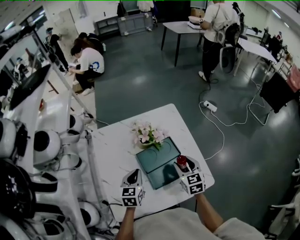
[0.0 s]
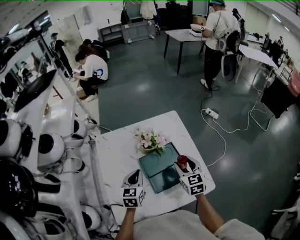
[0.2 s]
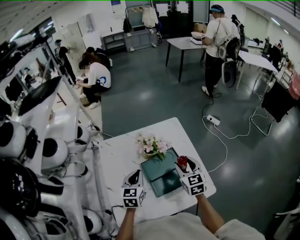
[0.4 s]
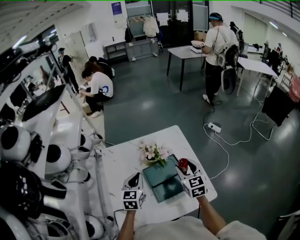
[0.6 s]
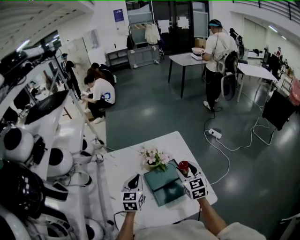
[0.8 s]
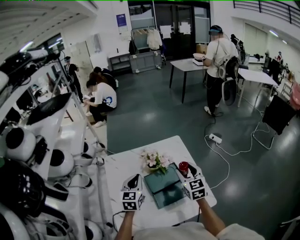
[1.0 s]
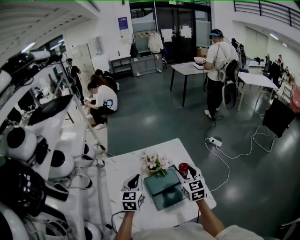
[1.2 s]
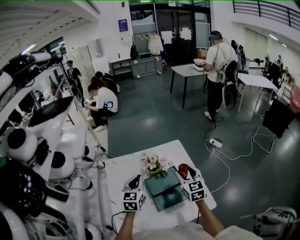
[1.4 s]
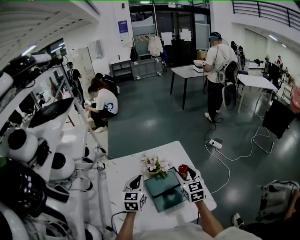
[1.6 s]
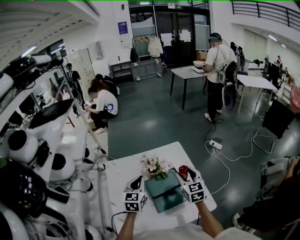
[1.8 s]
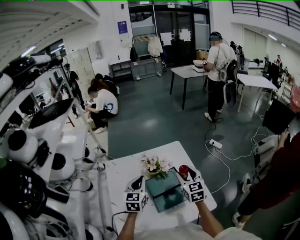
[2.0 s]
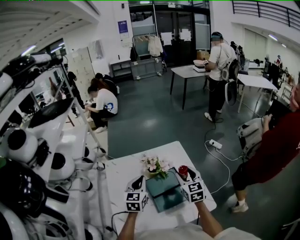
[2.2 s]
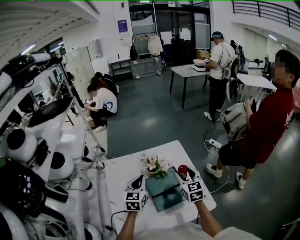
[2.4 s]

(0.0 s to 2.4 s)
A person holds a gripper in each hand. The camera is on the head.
0.0 s - 1.2 s: The two grippers go about 10 cm upward.
1.2 s - 2.4 s: The grippers make only small movements.

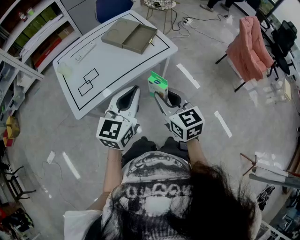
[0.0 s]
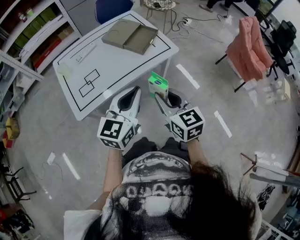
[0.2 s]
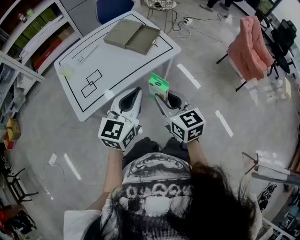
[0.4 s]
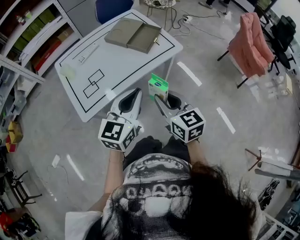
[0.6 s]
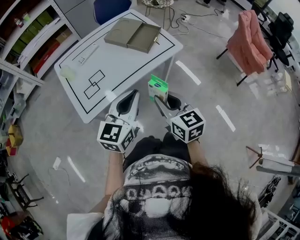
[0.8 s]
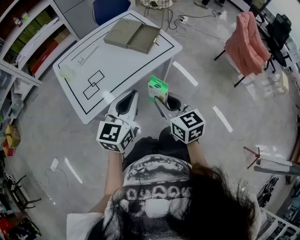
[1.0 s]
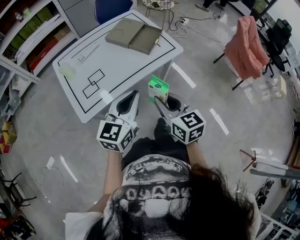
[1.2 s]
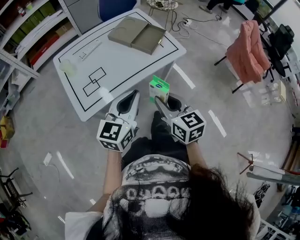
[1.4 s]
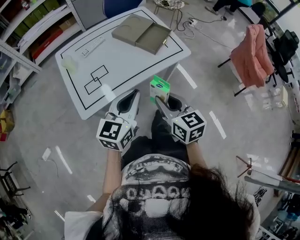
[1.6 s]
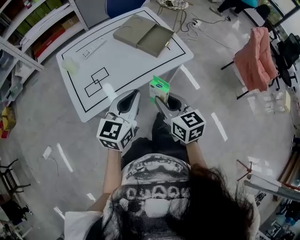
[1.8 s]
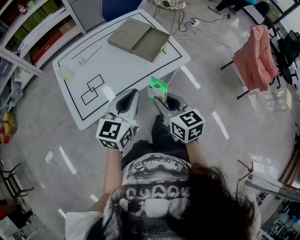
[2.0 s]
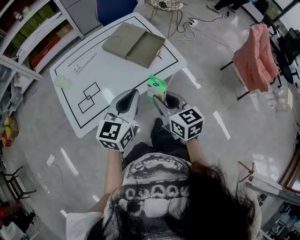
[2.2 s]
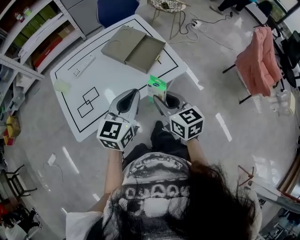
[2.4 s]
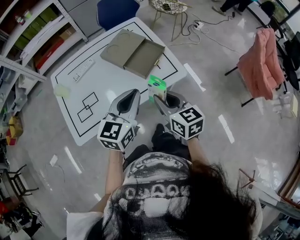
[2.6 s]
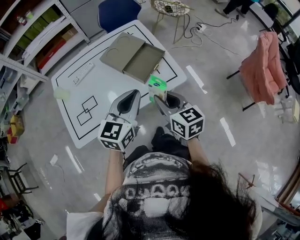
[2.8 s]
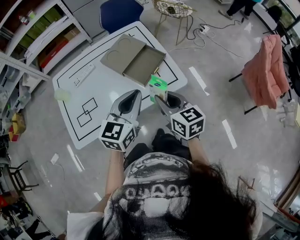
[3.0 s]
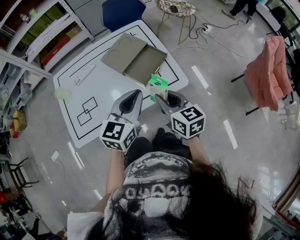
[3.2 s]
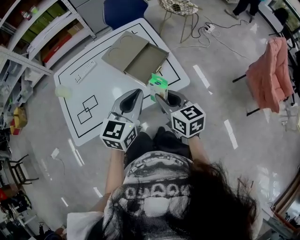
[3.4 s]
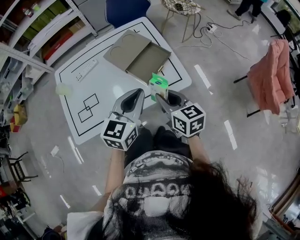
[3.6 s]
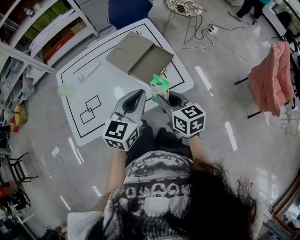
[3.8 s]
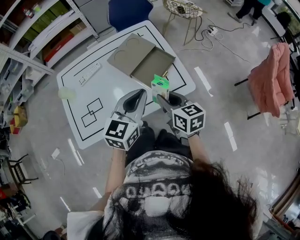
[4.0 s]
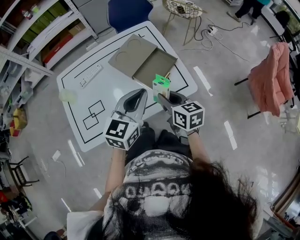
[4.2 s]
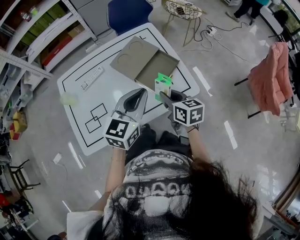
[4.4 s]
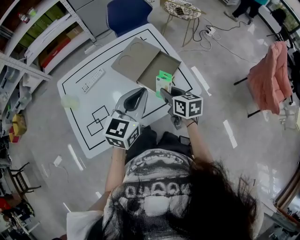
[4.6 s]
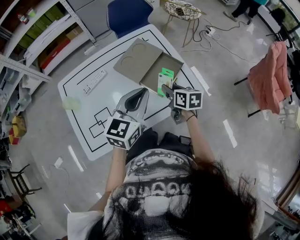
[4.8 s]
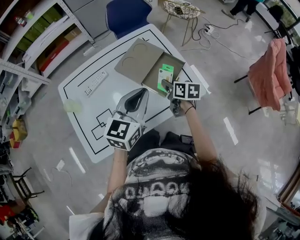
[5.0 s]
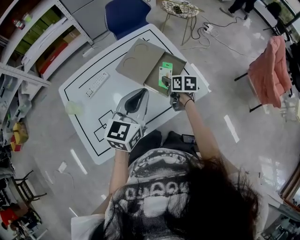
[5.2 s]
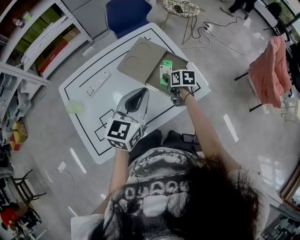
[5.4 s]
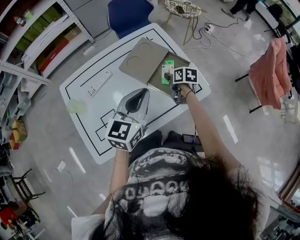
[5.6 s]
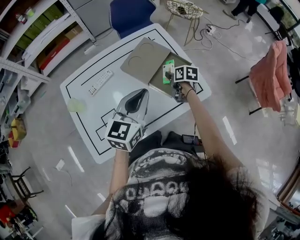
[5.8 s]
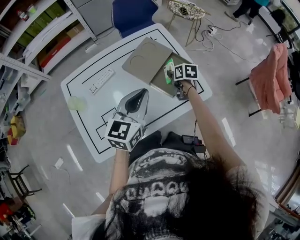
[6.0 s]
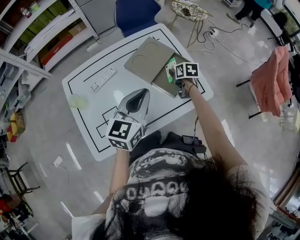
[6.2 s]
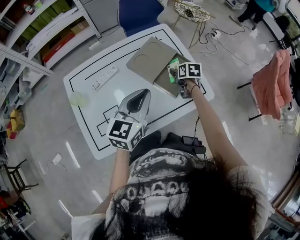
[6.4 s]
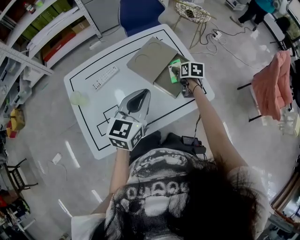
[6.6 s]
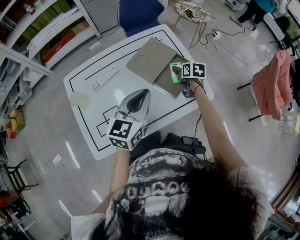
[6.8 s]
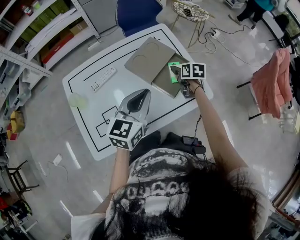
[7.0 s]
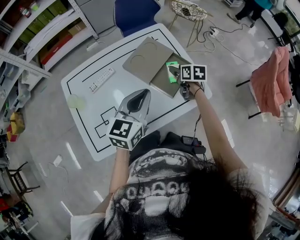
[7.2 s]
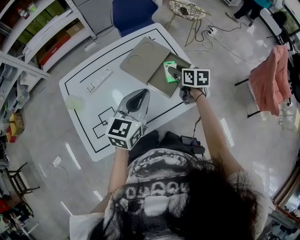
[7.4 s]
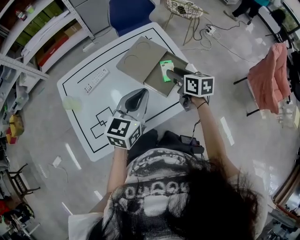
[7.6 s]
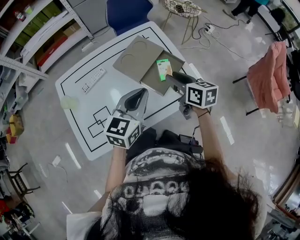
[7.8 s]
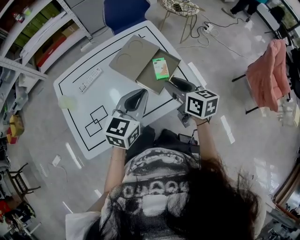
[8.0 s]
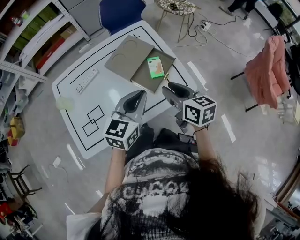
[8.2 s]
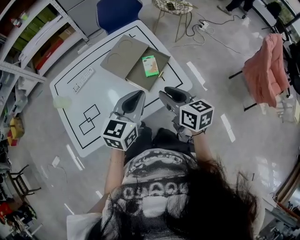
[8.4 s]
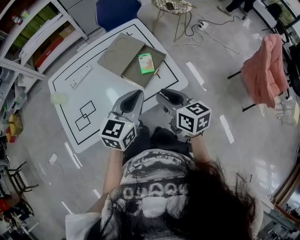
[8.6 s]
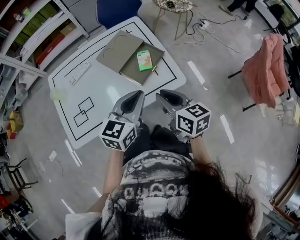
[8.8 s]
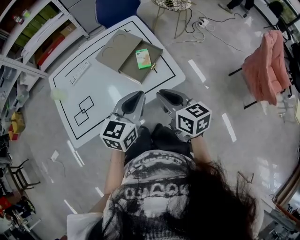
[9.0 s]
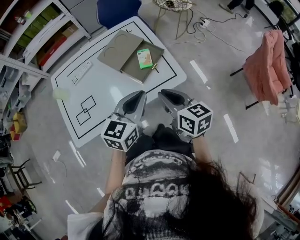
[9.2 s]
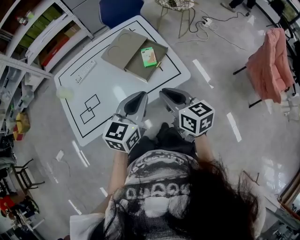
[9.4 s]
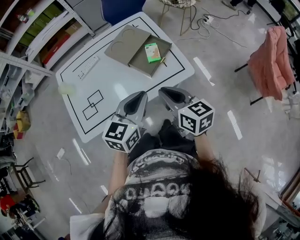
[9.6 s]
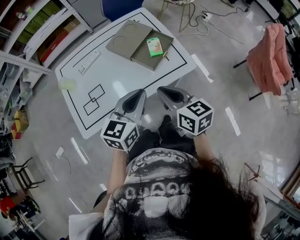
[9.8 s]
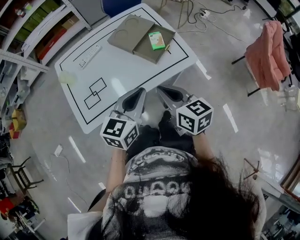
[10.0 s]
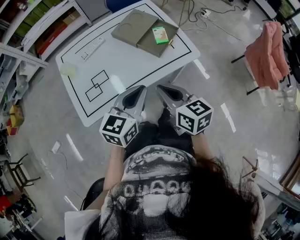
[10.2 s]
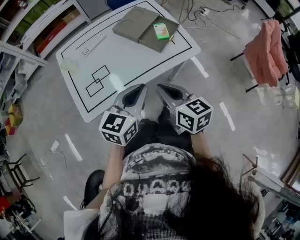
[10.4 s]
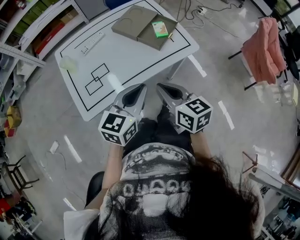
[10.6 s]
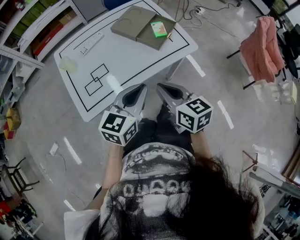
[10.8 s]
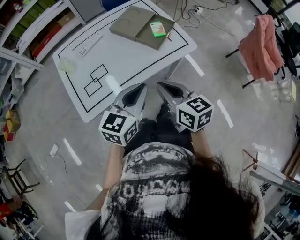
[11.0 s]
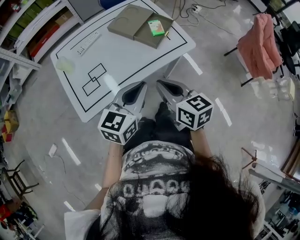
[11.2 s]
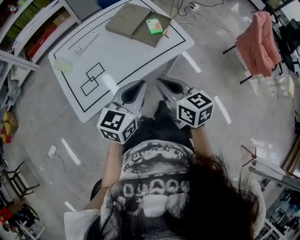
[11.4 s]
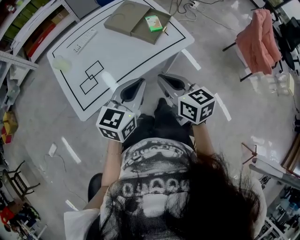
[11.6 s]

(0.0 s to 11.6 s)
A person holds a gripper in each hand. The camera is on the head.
0.0 s - 1.4 s: Both grippers travel together to the left, about 10 cm.
1.4 s - 2.8 s: Both grippers move forward and to the right, about 25 cm.
2.8 s - 4.4 s: The right gripper heads forward and downward, covering some 15 cm. Meanwhile the left gripper travels forward by approximately 10 cm.
4.4 s - 5.8 s: The left gripper moves to the left, about 10 cm; the right gripper heads forward and downward, covering roughly 20 cm, and swivels about 30 degrees.
5.8 s - 7.2 s: The right gripper ends up some 5 cm from where it was, and opens its fingers.
7.2 s - 8.8 s: The right gripper moves backward and upward, approximately 30 cm, turns by about 30 degrees, and closes; the left gripper goes some 20 cm to the right and backward.
8.8 s - 10.2 s: The left gripper moves backward and to the left, approximately 20 cm, while the right gripper travels to the left and backward by approximately 20 cm.
10.2 s - 11.6 s: The grippers move only a little.

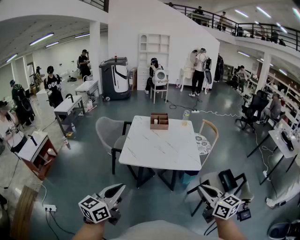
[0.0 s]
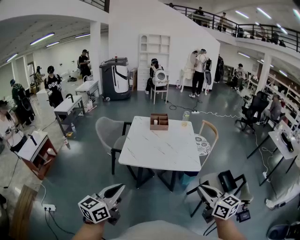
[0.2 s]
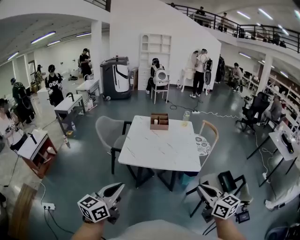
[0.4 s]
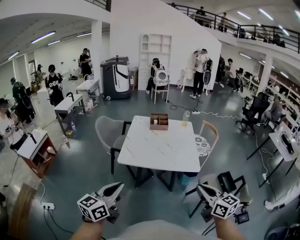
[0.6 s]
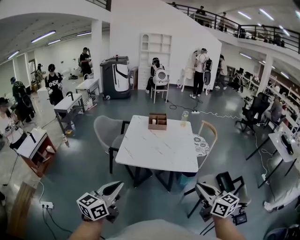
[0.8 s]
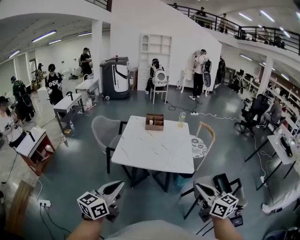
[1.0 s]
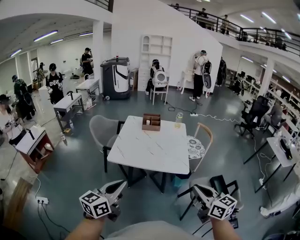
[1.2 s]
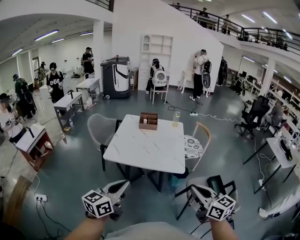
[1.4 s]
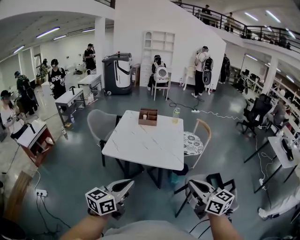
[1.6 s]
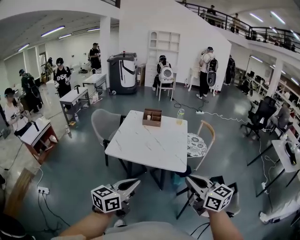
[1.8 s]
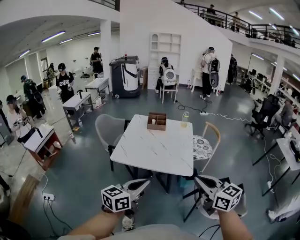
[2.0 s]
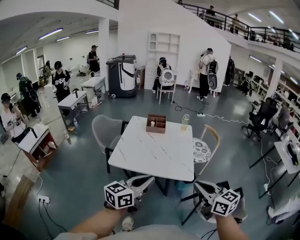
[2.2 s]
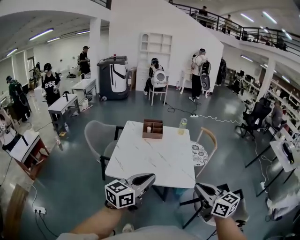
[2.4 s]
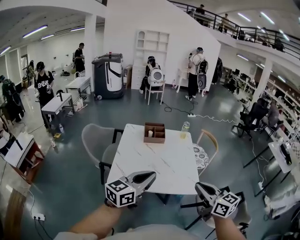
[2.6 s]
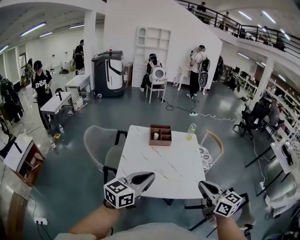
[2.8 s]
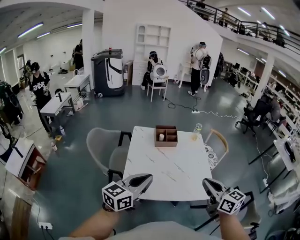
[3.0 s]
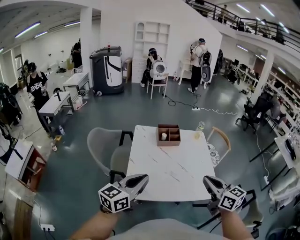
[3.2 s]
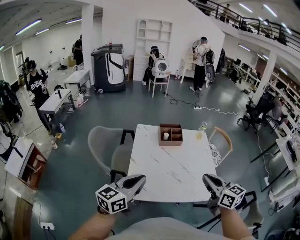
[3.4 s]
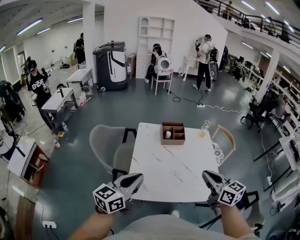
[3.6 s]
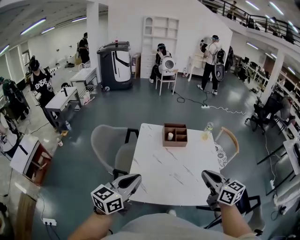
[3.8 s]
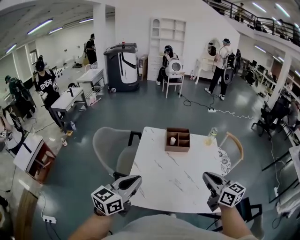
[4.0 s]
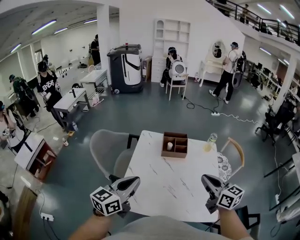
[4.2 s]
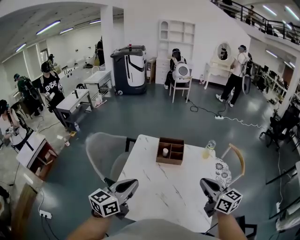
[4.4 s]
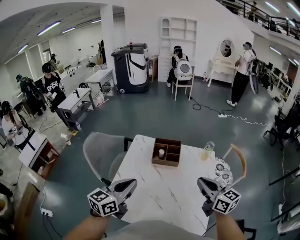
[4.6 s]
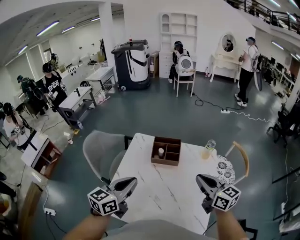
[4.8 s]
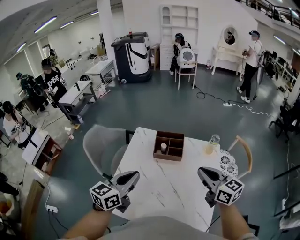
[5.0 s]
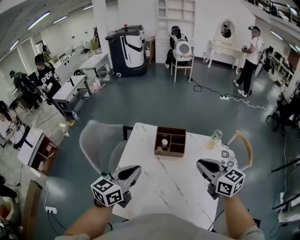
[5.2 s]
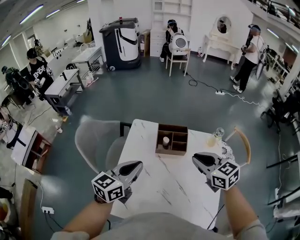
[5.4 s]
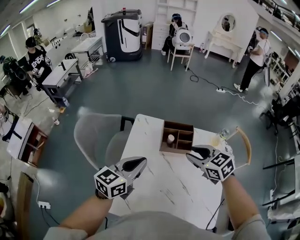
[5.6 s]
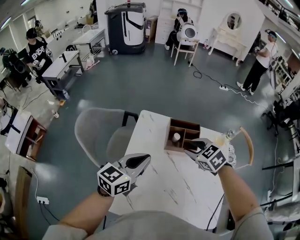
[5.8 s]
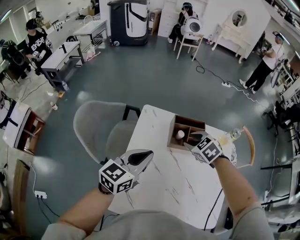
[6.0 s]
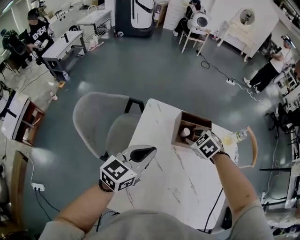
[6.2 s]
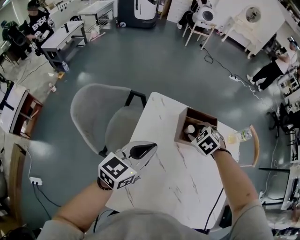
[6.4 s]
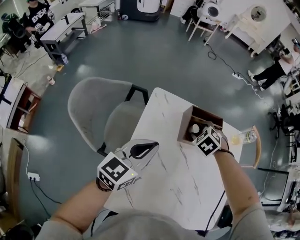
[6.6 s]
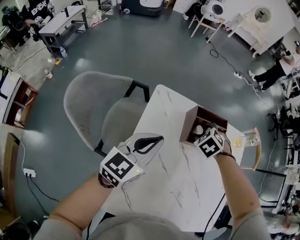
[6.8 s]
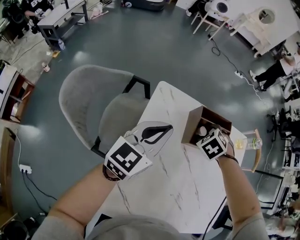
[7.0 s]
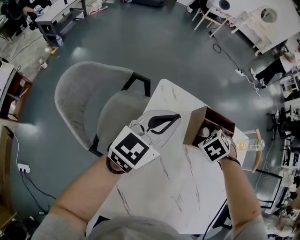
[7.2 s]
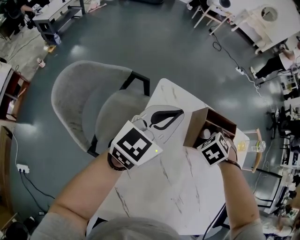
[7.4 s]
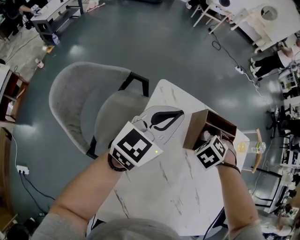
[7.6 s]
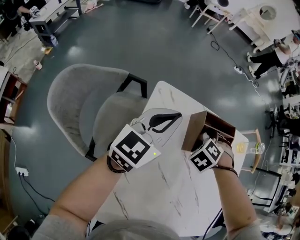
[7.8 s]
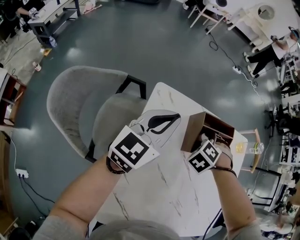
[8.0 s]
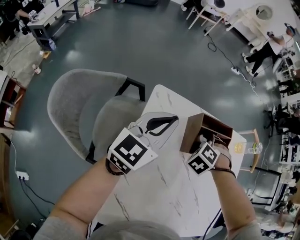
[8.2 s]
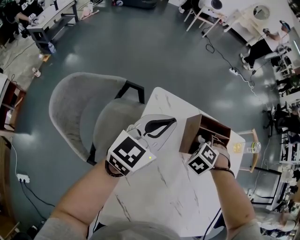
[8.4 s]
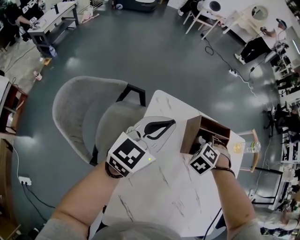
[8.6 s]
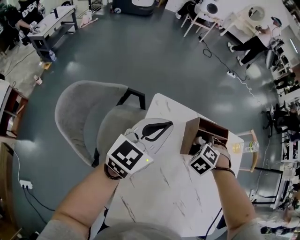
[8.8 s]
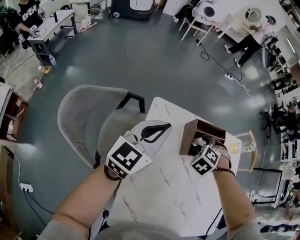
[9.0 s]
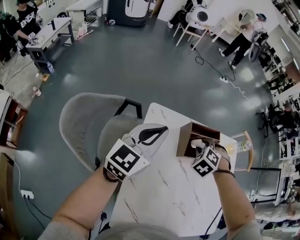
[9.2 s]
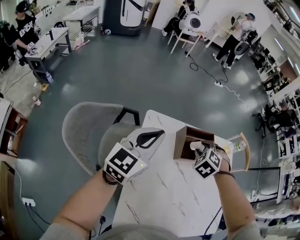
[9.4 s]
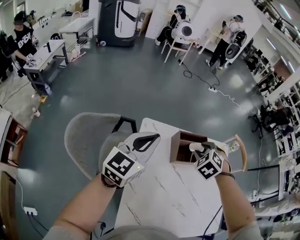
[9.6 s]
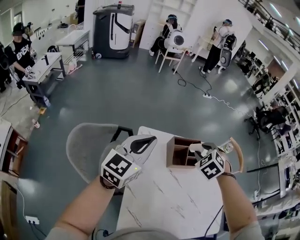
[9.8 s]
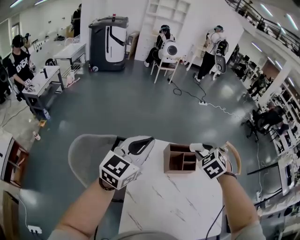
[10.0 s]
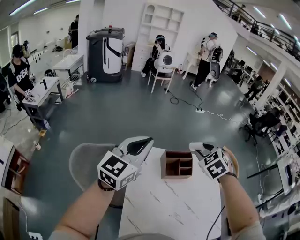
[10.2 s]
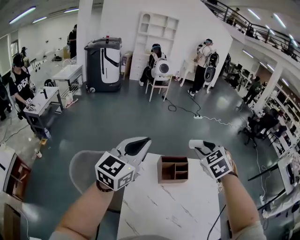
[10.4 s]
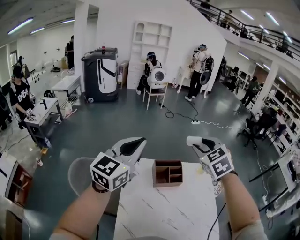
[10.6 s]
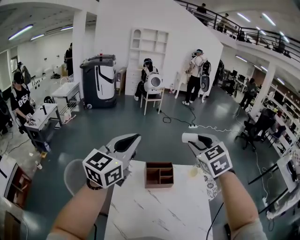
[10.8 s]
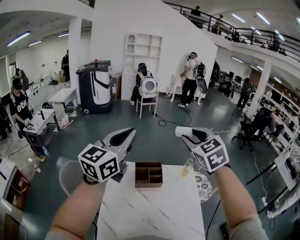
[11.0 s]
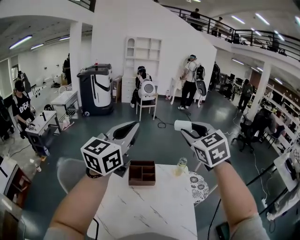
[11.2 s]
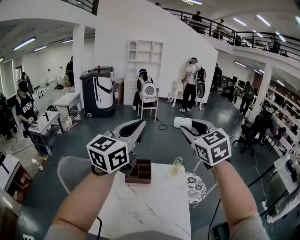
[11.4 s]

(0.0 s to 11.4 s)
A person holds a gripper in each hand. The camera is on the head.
0.0 s - 1.4 s: Both grippers move to the right, approximately 15 cm.
1.4 s - 2.8 s: The right gripper heads forward and to the left, covering roughly 30 cm. Meanwhile the left gripper moves forward, some 30 cm.
2.8 s - 4.2 s: The right gripper is displaced forward by some 20 cm, while the left gripper is displaced forward and to the left by roughly 15 cm.
4.2 s - 5.6 s: Both grippers travel together forward, roughly 20 cm. The right gripper swivels approximately 40 degrees, and opens up.
5.6 s - 7.2 s: The right gripper goes approximately 20 cm downward, tilts its fingers approximately 30 degrees downward, and opens up. Meanwhile the left gripper changes place by approximately 20 cm.
7.2 s - 8.6 s: There are only small adjustments of the grippers.
8.6 s - 10.0 s: Both grippers move upward, roughly 20 cm. The right gripper swivels about 30 degrees.
10.0 s - 11.4 s: The left gripper goes approximately 40 cm to the right and upward. The right gripper moves upward and to the right, roughly 40 cm, and tilts its fingers about 40 degrees upward.
